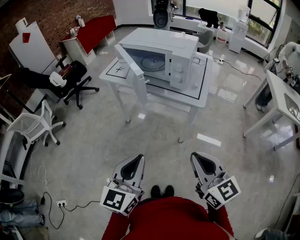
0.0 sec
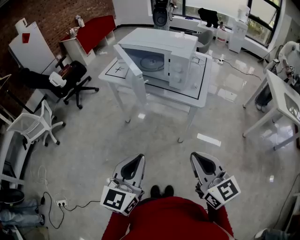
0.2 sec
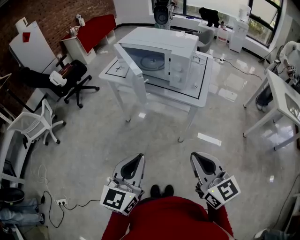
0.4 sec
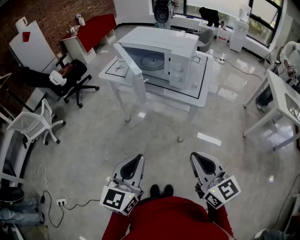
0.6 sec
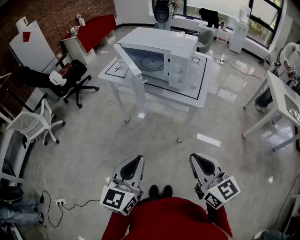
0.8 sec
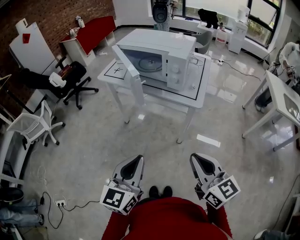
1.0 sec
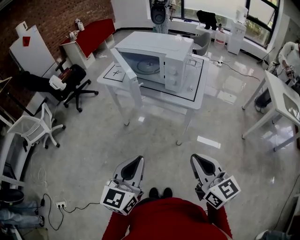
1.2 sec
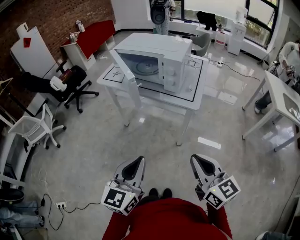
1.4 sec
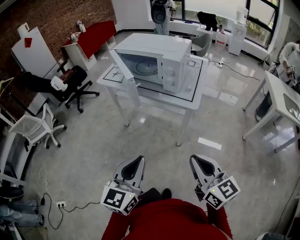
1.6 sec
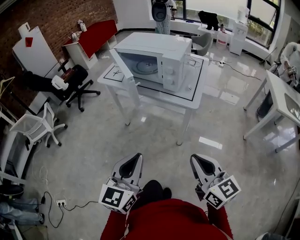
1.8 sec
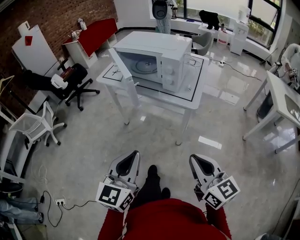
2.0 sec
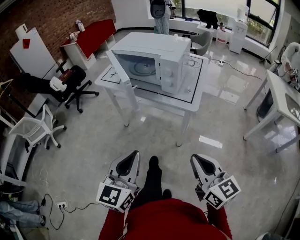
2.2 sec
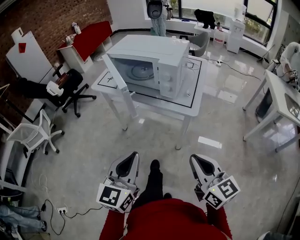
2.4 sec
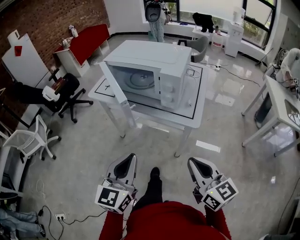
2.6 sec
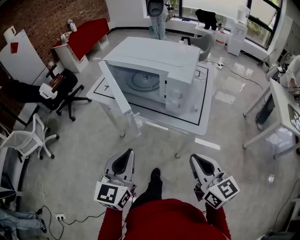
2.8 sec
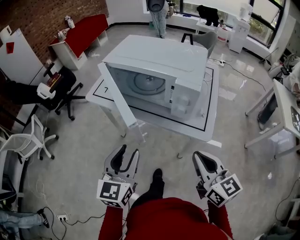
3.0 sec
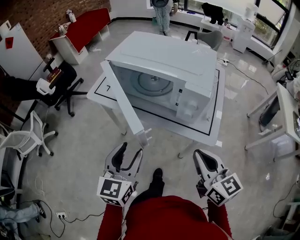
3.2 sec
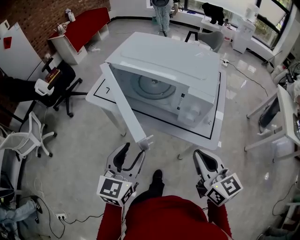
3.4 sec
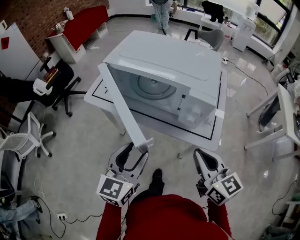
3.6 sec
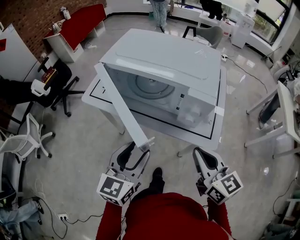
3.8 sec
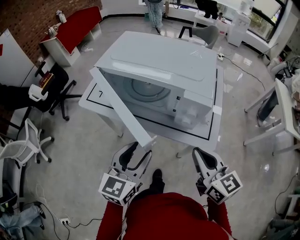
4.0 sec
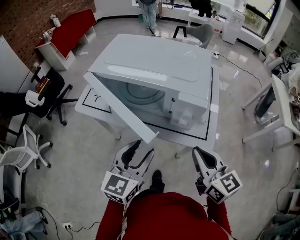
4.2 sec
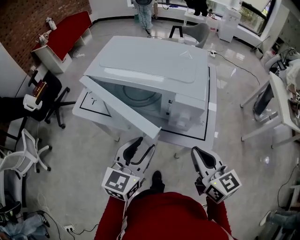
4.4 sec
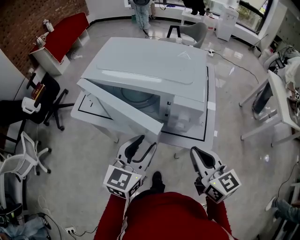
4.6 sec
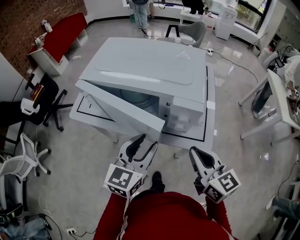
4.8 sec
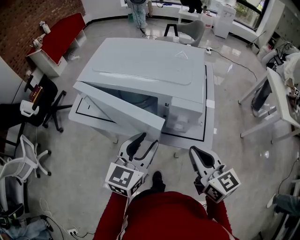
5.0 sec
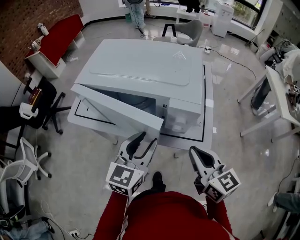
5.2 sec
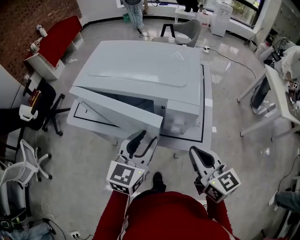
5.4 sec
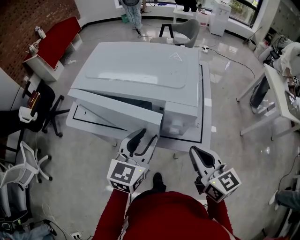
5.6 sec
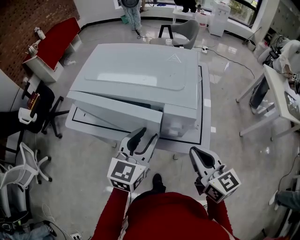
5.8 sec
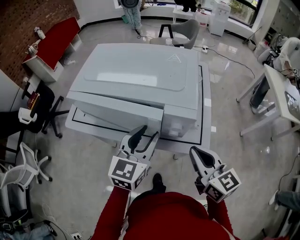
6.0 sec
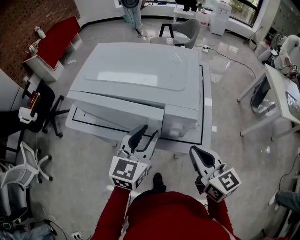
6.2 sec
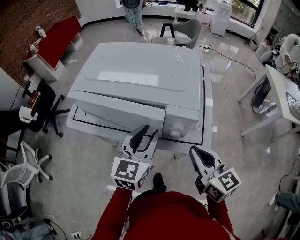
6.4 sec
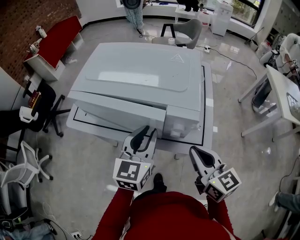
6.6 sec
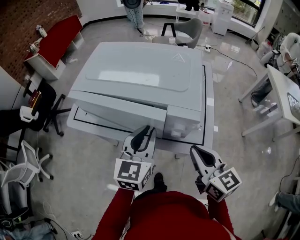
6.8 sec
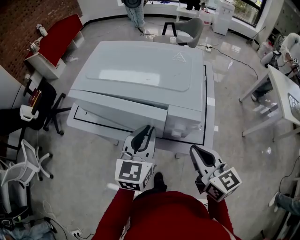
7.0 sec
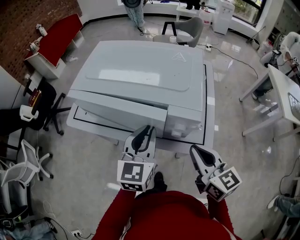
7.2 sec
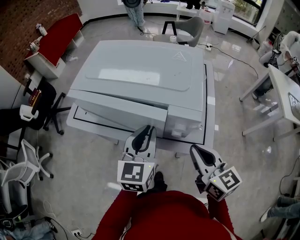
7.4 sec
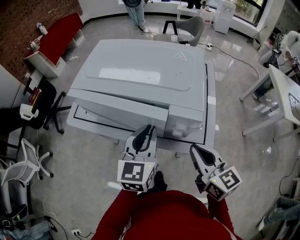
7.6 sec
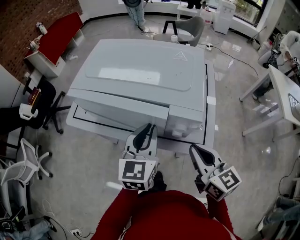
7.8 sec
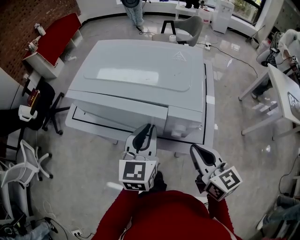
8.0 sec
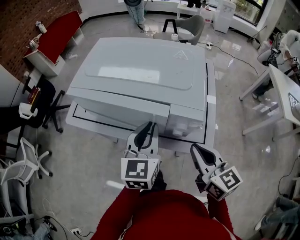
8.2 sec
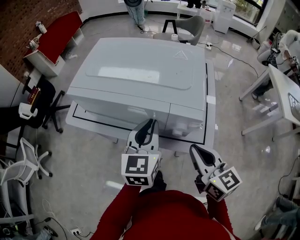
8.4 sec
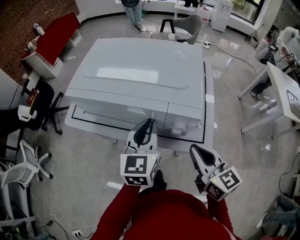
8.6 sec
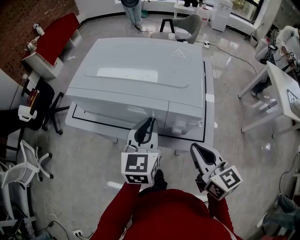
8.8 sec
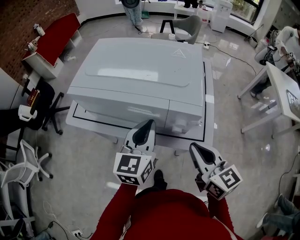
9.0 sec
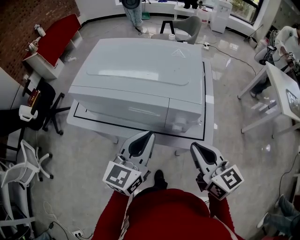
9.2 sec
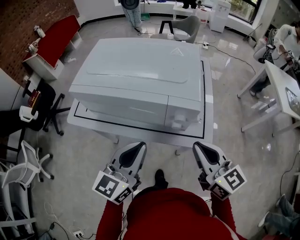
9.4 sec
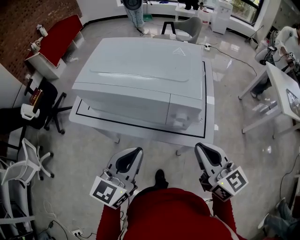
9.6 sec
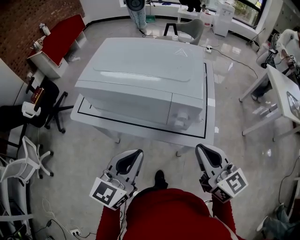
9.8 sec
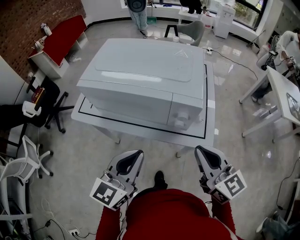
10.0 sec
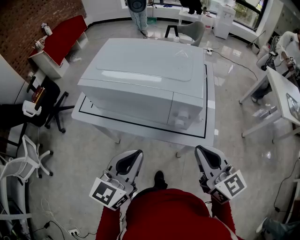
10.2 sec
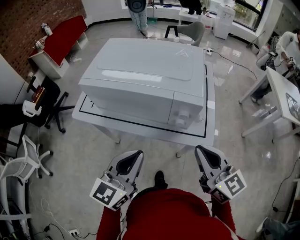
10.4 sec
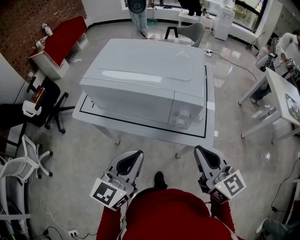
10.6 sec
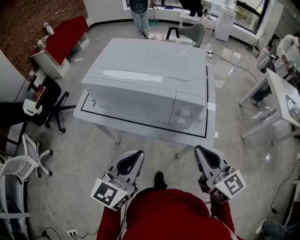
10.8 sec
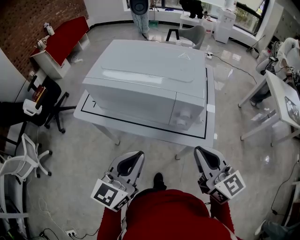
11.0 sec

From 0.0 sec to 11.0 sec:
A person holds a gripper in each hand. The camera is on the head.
From 0.0 sec to 1.6 sec: The grippers make only small movements.
From 1.6 sec to 3.2 sec: Both grippers travel together forward, about 25 cm. The left gripper opens up.
From 3.2 sec to 4.8 sec: The right gripper is displaced forward by approximately 5 cm. Meanwhile the left gripper shifts some 15 cm forward and to the right, and turns by about 20 degrees.
From 4.8 sec to 6.2 sec: The left gripper is displaced forward by some 5 cm.
From 6.2 sec to 7.8 sec: The left gripper closes up.
From 7.8 sec to 9.4 sec: The left gripper is displaced backward by about 10 cm, and swivels about 20 degrees.
From 9.4 sec to 11.0 sec: The left gripper moves backward, some 5 cm.

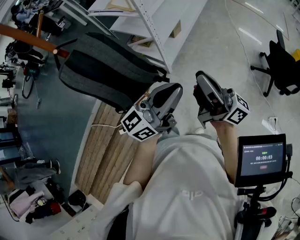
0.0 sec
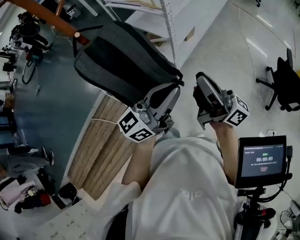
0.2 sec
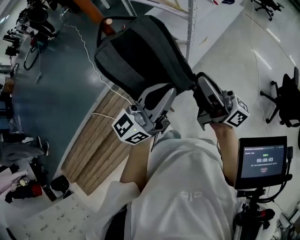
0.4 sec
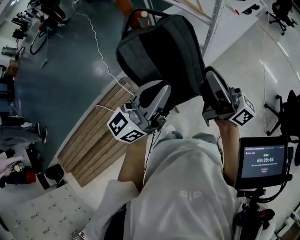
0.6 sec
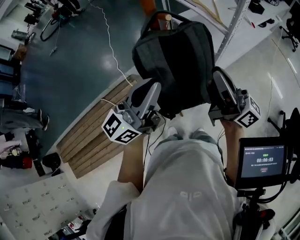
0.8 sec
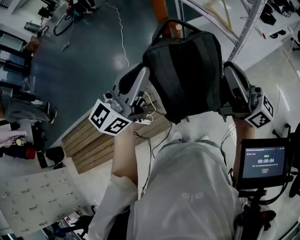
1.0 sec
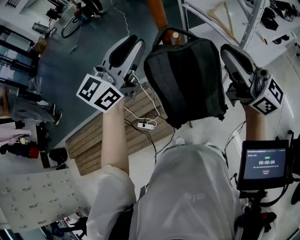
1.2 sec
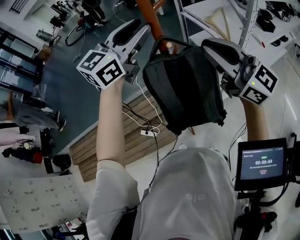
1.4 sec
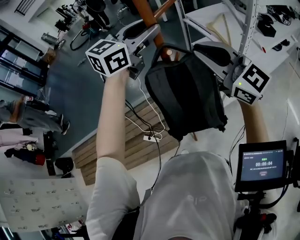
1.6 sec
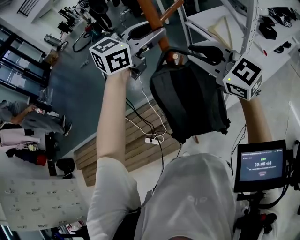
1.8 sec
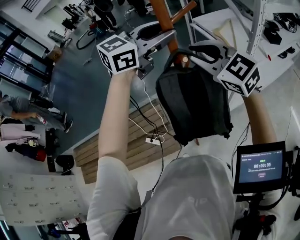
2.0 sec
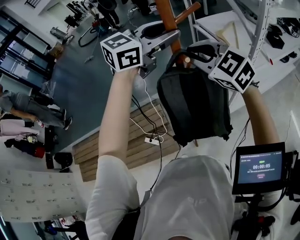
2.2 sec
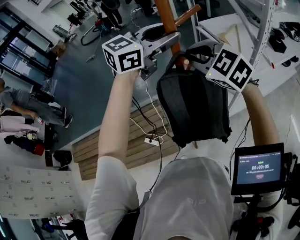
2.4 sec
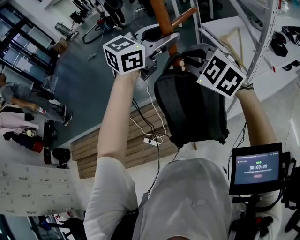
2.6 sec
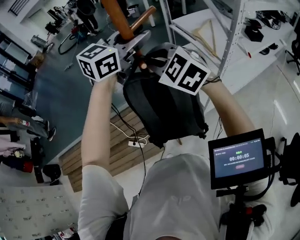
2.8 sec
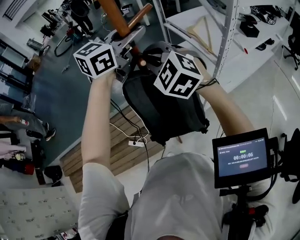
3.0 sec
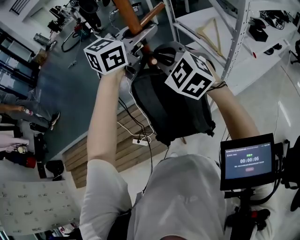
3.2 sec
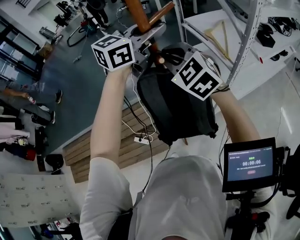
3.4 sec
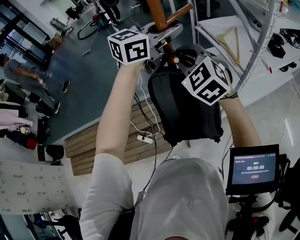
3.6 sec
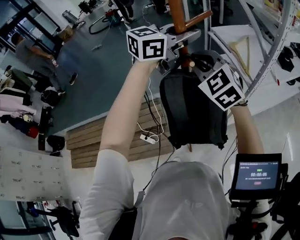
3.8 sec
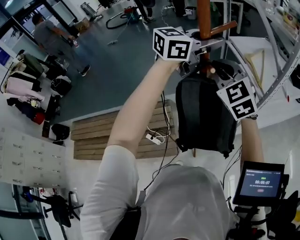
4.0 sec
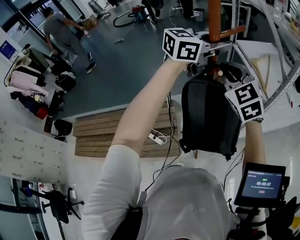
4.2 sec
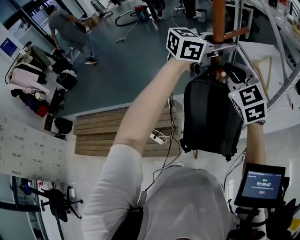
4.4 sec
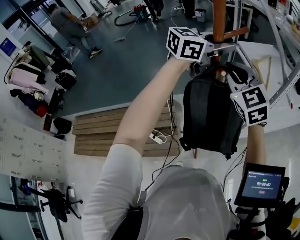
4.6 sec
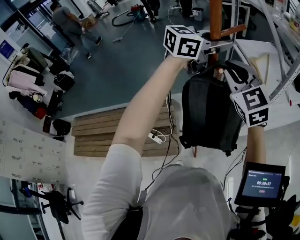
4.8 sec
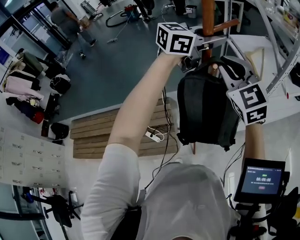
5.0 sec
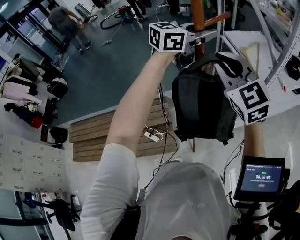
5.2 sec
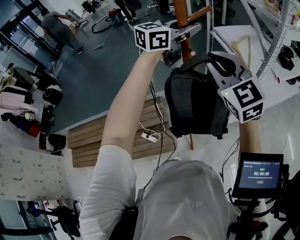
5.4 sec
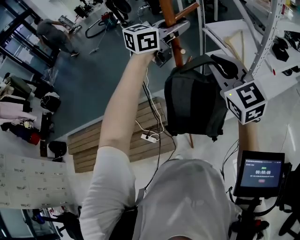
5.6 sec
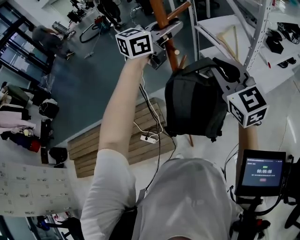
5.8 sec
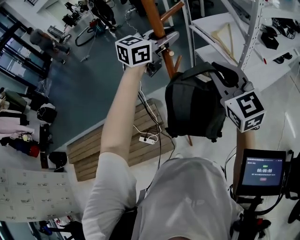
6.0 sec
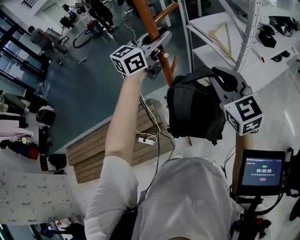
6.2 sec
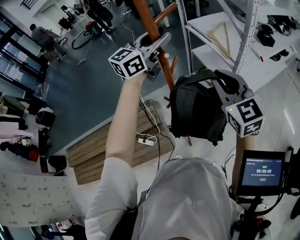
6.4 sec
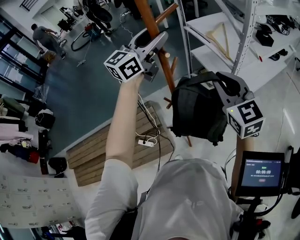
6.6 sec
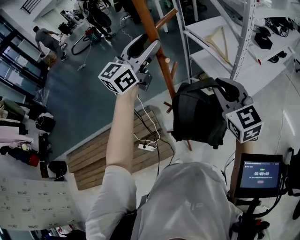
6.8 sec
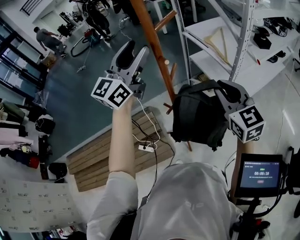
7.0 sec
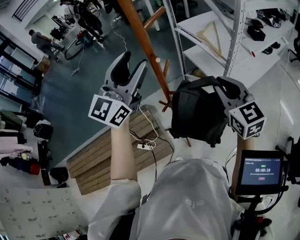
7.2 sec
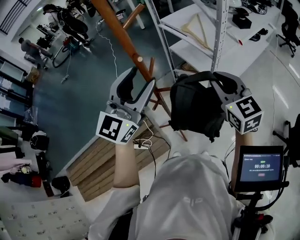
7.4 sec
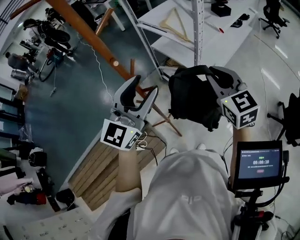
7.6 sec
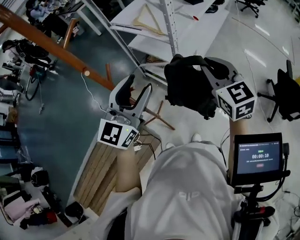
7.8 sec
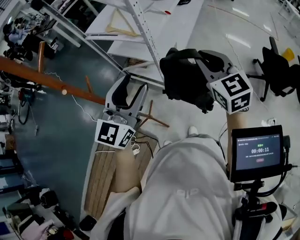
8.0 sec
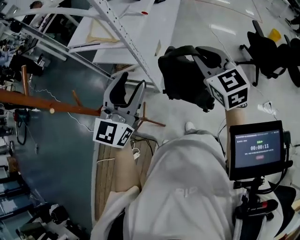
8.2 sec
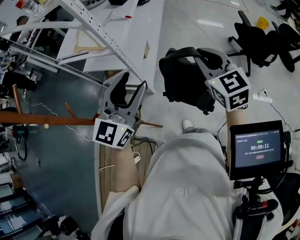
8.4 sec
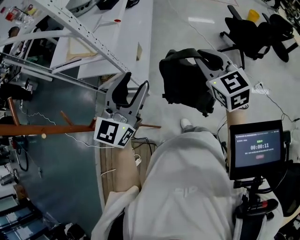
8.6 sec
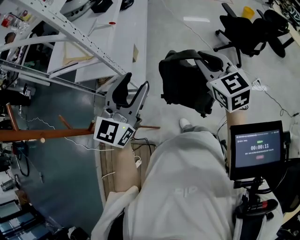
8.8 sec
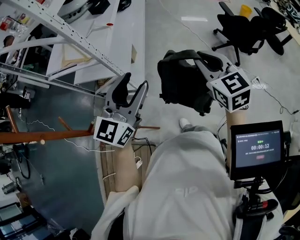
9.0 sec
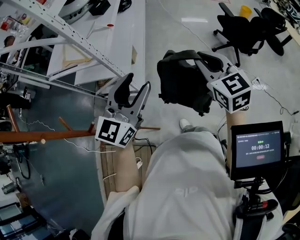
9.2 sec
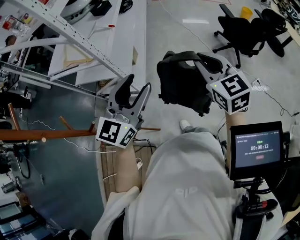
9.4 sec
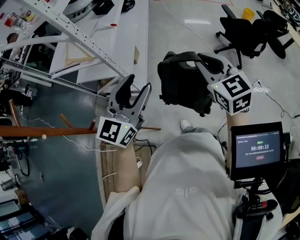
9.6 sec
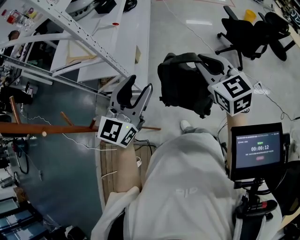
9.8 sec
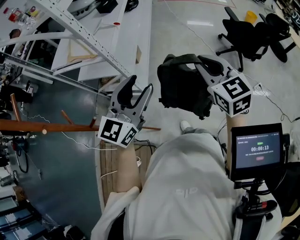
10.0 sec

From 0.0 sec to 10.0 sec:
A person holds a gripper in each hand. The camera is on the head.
From 0.0 sec to 1.4 sec: The right gripper ends up approximately 40 cm from where it was, and swivels roughly 50 degrees. The left gripper moves approximately 50 cm, turns by some 50 degrees, and opens up.
From 1.4 sec to 2.8 sec: The right gripper goes about 15 cm to the left and forward, and points its fingers approximately 40 degrees further downward.
From 2.8 sec to 4.2 sec: The grippers move only a little.
From 4.2 sec to 5.8 sec: The right gripper moves to the right, some 10 cm. Meanwhile the left gripper changes place by roughly 5 cm.
From 5.8 sec to 7.2 sec: The left gripper shifts approximately 15 cm backward, rotates roughly 30 degrees, and opens up. The right gripper shifts some 10 cm to the right and downward.
From 7.2 sec to 8.6 sec: The left gripper moves approximately 35 cm, and turns by roughly 50 degrees; the right gripper shifts by some 35 cm, and swivels about 50 degrees.
From 8.6 sec to 10.0 sec: The grippers make only small movements.

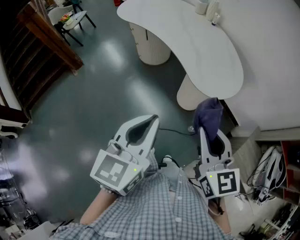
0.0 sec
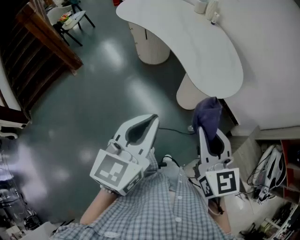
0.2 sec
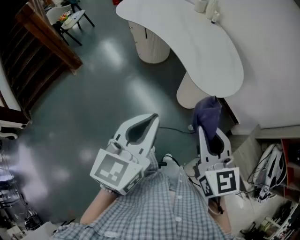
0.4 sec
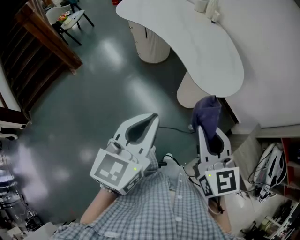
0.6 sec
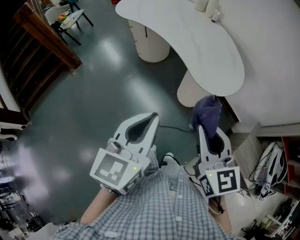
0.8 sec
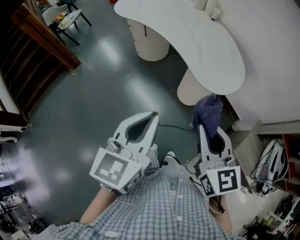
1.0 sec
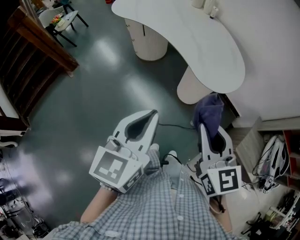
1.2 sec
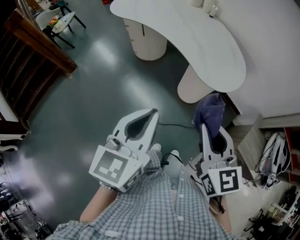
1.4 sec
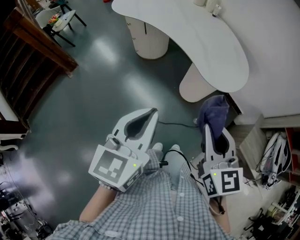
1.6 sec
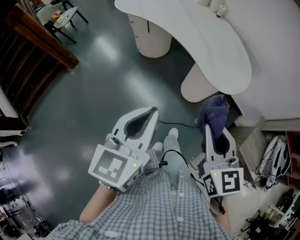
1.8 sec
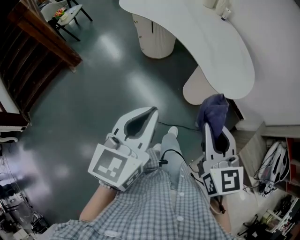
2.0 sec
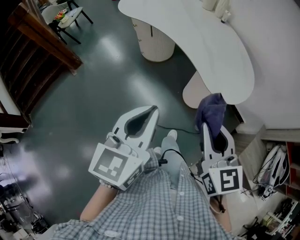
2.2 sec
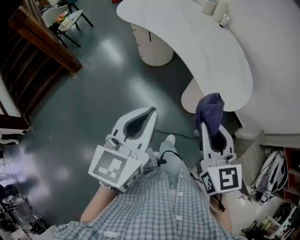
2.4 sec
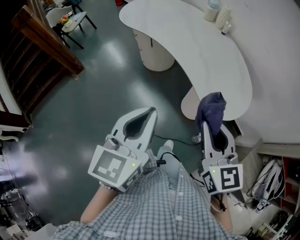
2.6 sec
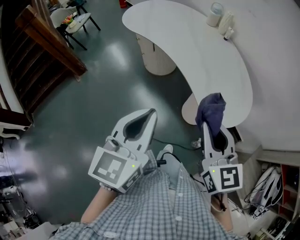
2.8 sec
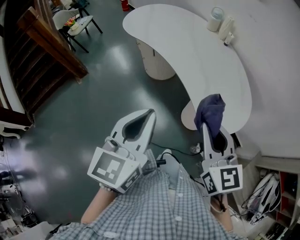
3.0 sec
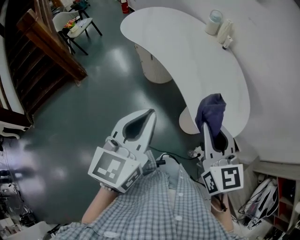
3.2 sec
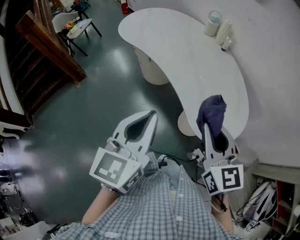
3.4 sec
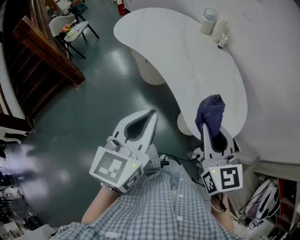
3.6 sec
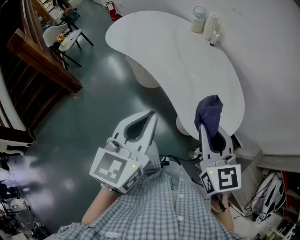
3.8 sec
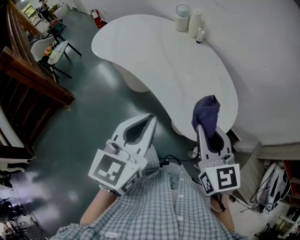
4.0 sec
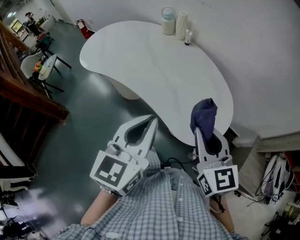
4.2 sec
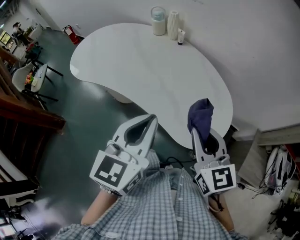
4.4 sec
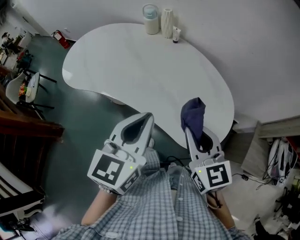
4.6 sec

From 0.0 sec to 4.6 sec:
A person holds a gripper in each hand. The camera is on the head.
From 0.0 sec to 1.6 sec: Both grippers travel together to the left, approximately 5 cm.
From 1.6 sec to 3.0 sec: Both grippers move forward, roughly 15 cm.
From 3.0 sec to 4.6 sec: Both grippers travel together forward, about 20 cm. The left gripper rotates roughly 30 degrees. Meanwhile the right gripper swivels some 20 degrees.
